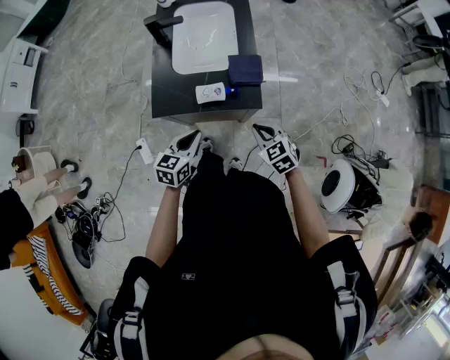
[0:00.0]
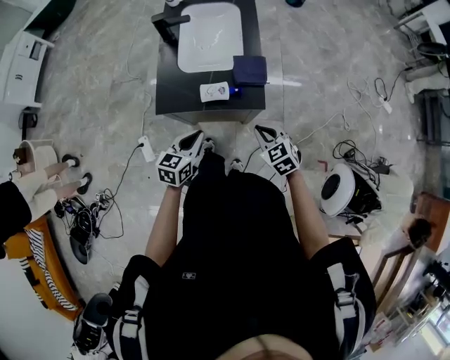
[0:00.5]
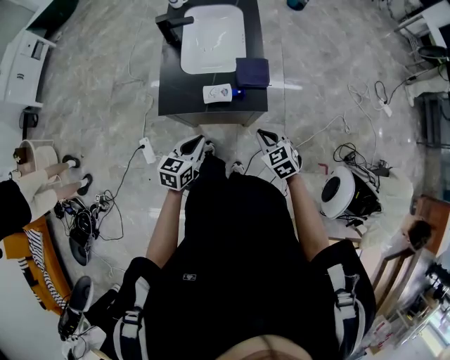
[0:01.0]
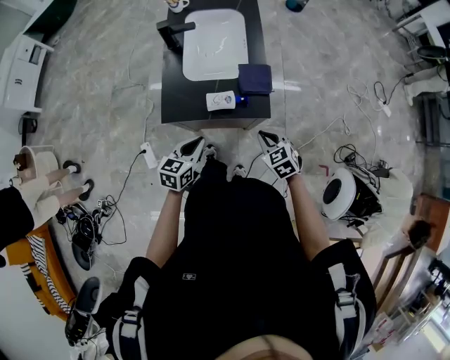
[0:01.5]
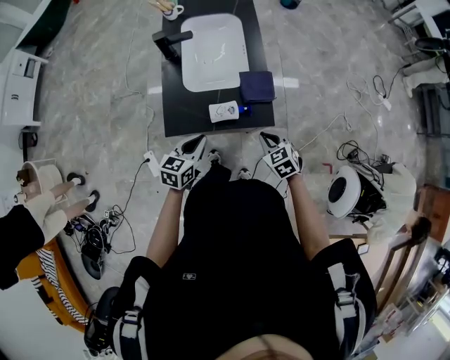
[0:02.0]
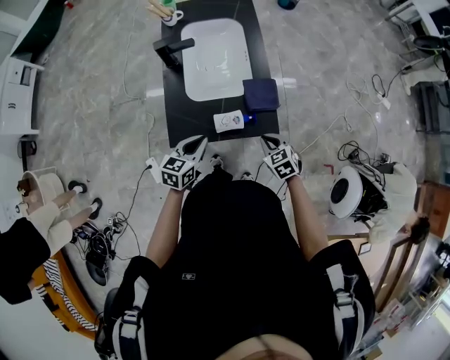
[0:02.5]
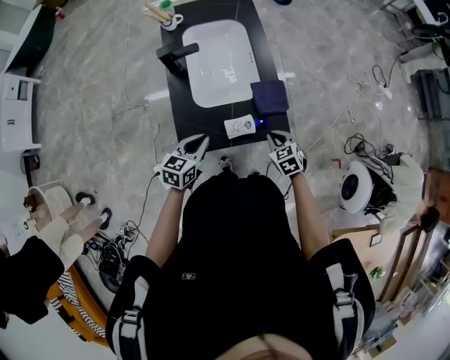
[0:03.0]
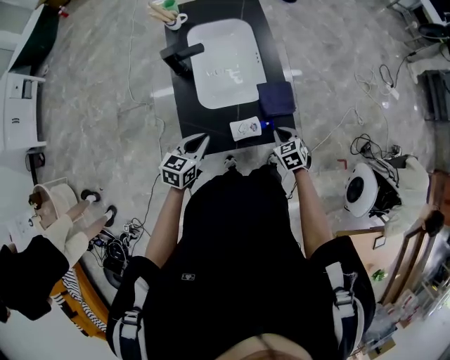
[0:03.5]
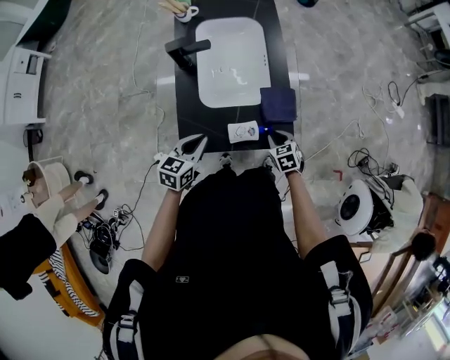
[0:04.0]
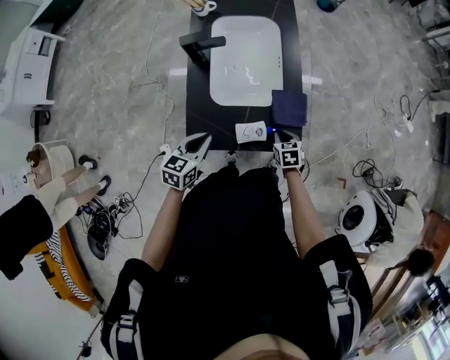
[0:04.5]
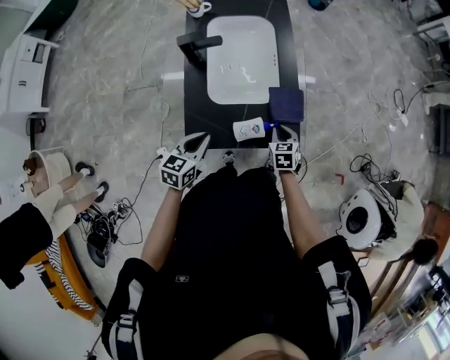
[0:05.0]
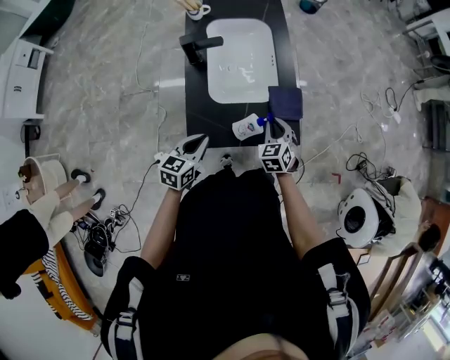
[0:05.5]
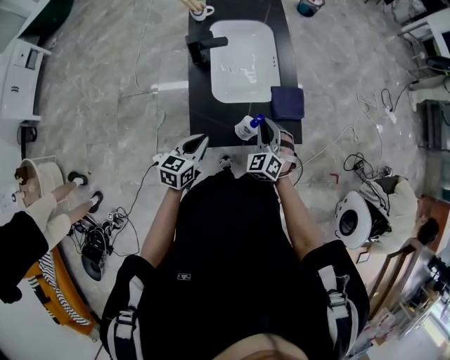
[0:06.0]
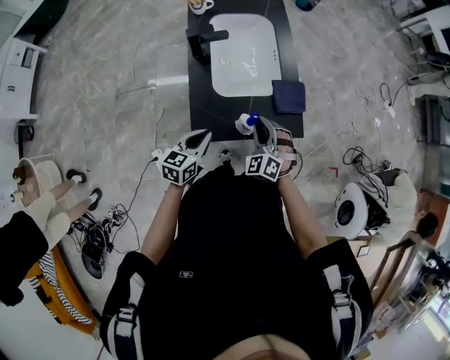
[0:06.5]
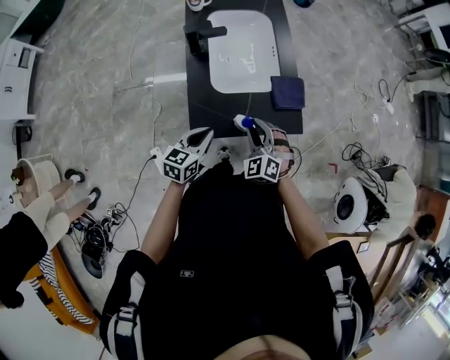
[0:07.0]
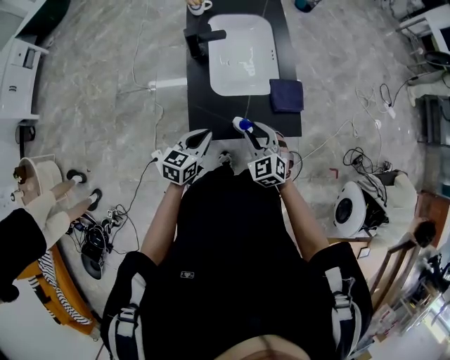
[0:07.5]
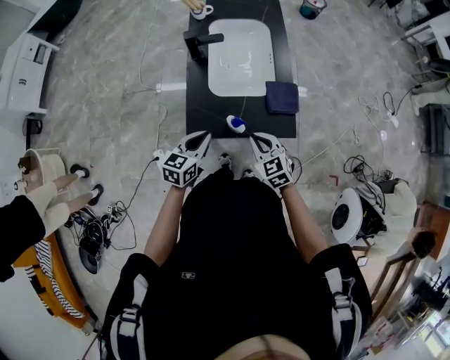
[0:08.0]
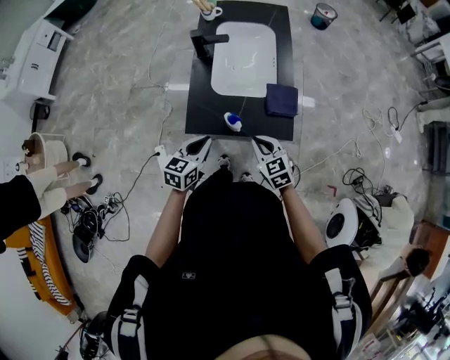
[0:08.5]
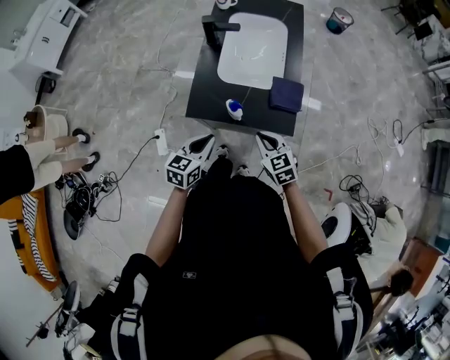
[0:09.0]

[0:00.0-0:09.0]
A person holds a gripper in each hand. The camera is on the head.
0:00.0 to 0:02.0: The left gripper heads forward, covering roughly 5 cm, while the right gripper changes place by about 5 cm.
0:02.0 to 0:04.5: The left gripper travels to the left and forward by about 10 cm; the right gripper goes about 15 cm forward and downward, and turns by roughly 20 degrees.
0:04.5 to 0:07.0: The right gripper is displaced upward, to the left and backward by some 20 cm, and rolls counterclockwise, seen from behind, by approximately 50 degrees.
0:07.0 to 0:09.0: The left gripper changes place by about 10 cm, while the right gripper ends up approximately 10 cm from where it was, turns by approximately 40 degrees, and closes.

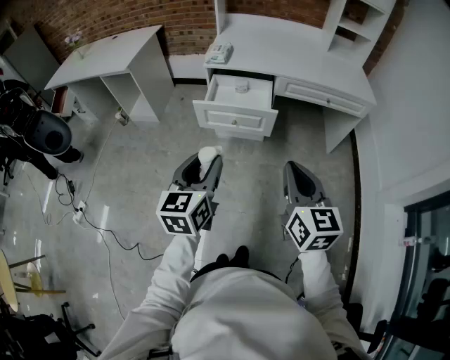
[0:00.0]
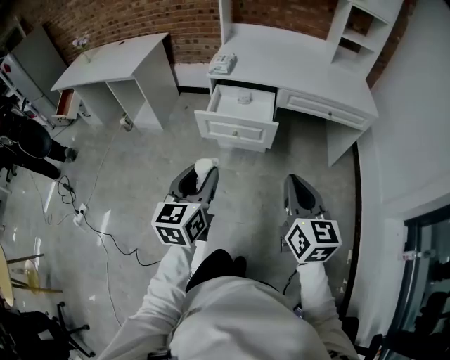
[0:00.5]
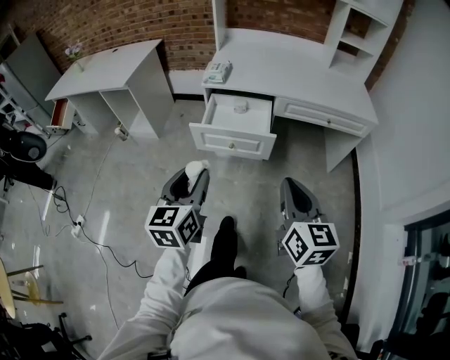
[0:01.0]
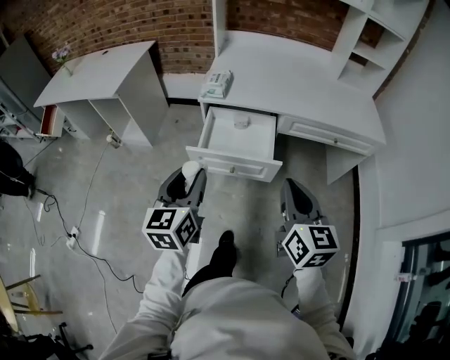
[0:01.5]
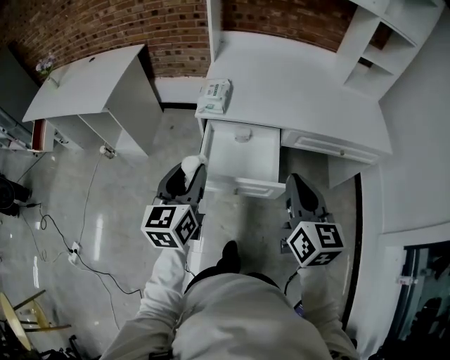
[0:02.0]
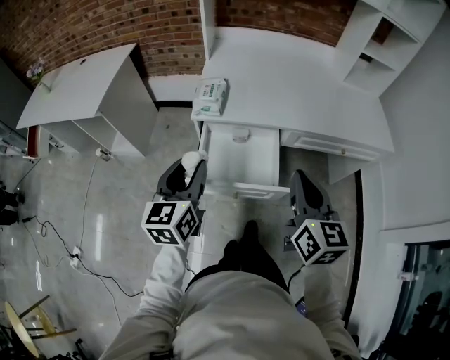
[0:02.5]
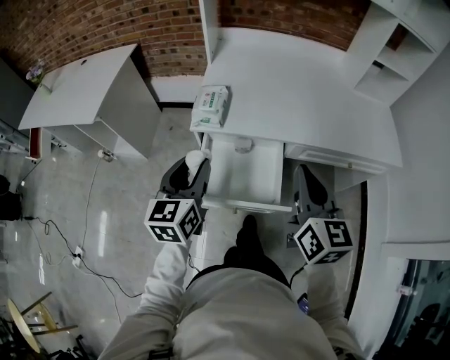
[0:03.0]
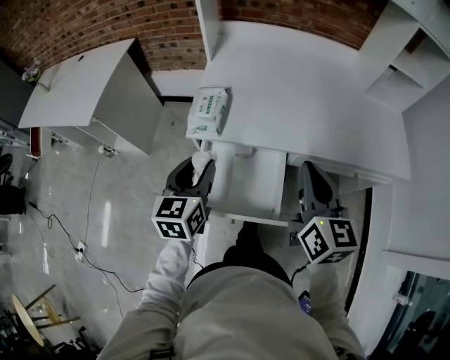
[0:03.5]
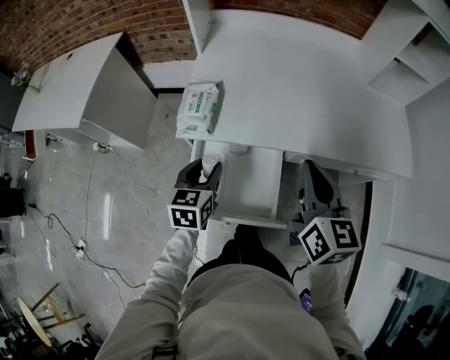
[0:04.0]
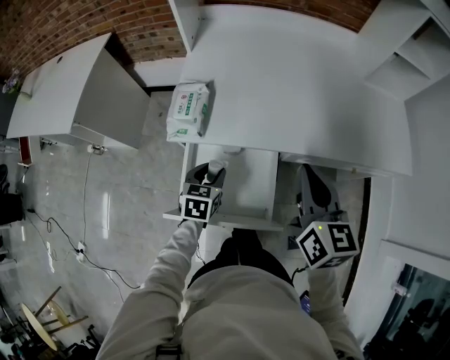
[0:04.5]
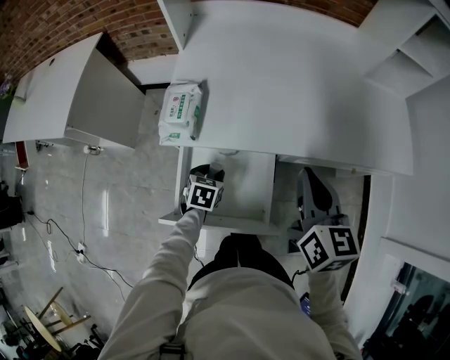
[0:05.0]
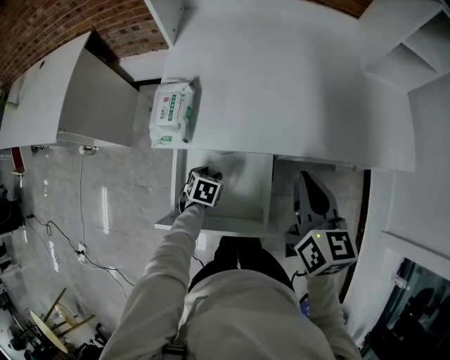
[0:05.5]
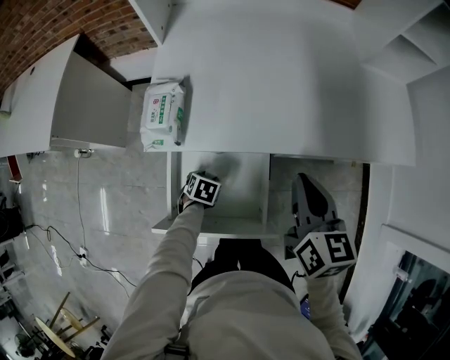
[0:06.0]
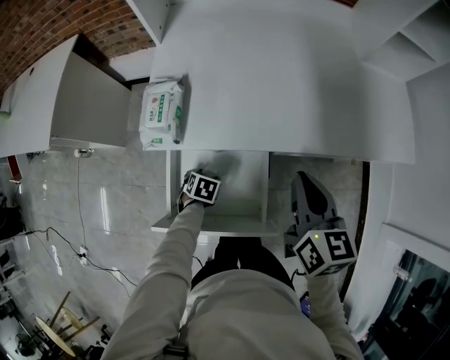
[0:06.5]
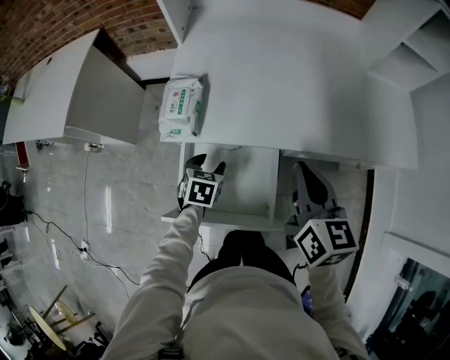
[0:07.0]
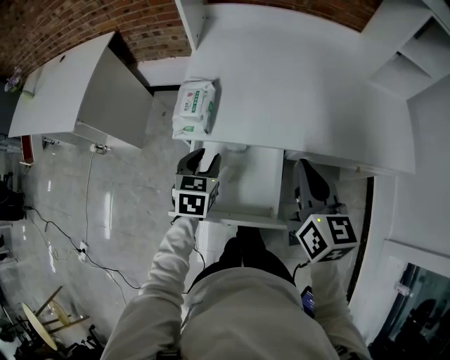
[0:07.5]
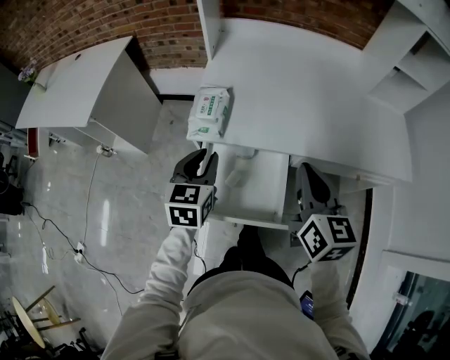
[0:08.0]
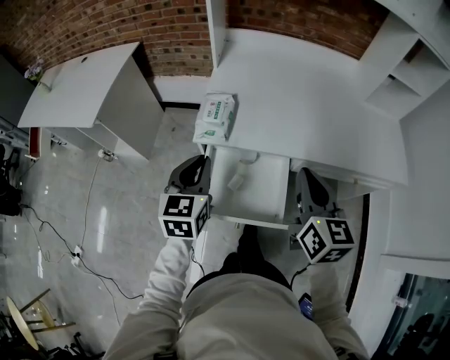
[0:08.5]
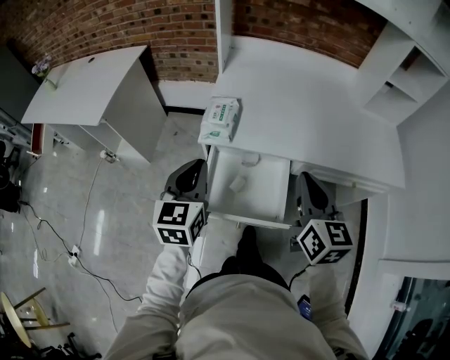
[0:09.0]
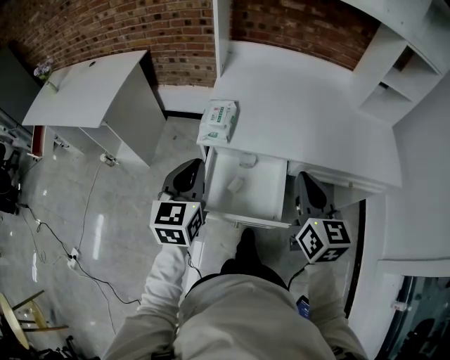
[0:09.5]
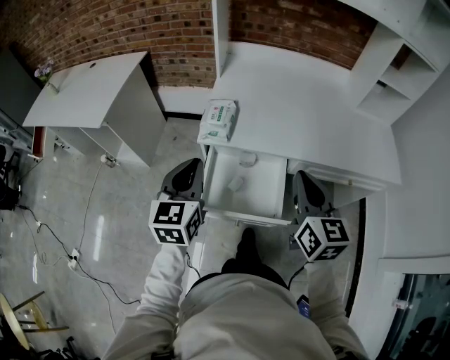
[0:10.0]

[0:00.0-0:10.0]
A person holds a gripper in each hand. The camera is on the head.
0:00.0 to 0:02.0: The grippers both shift forward by some 30 cm.
0:02.0 to 0:04.0: The right gripper goes approximately 20 cm forward; the left gripper heads forward and downward, covering roughly 25 cm, and swivels roughly 20 degrees.
0:04.0 to 0:06.0: The left gripper goes roughly 25 cm downward, and angles its fingers downward, by some 40 degrees; the right gripper goes about 5 cm downward.
0:06.0 to 0:08.0: The left gripper travels upward by about 35 cm, and points its fingers some 40 degrees further upward. Meanwhile the right gripper is displaced upward and to the left by roughly 10 cm.
0:08.0 to 0:10.0: The left gripper goes roughly 15 cm upward, backward and to the left. Meanwhile the right gripper moves backward, about 5 cm.

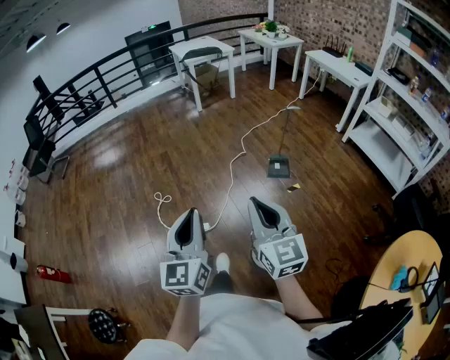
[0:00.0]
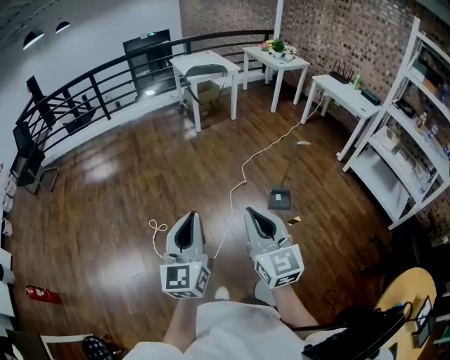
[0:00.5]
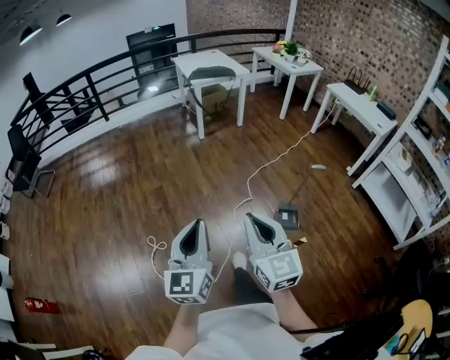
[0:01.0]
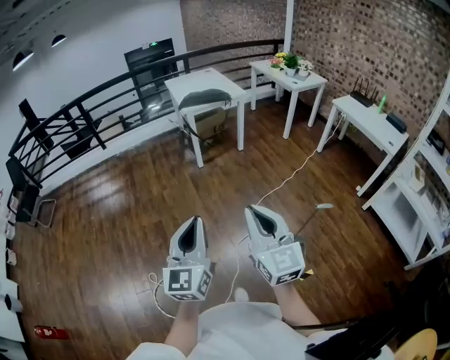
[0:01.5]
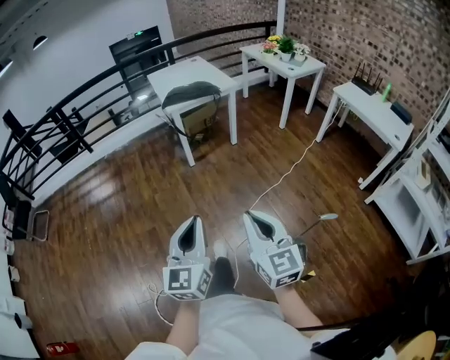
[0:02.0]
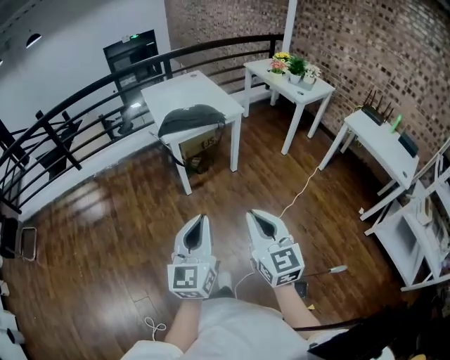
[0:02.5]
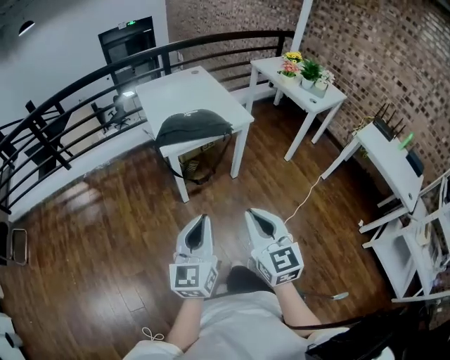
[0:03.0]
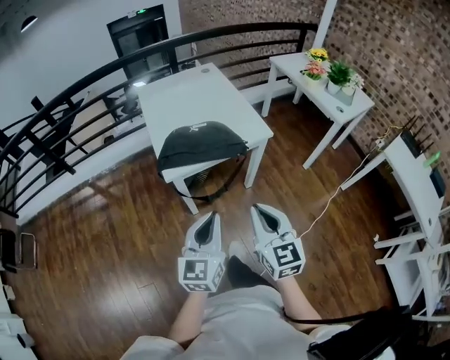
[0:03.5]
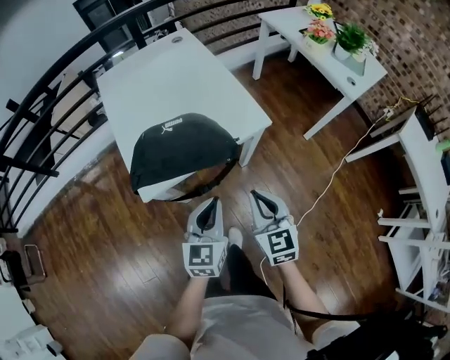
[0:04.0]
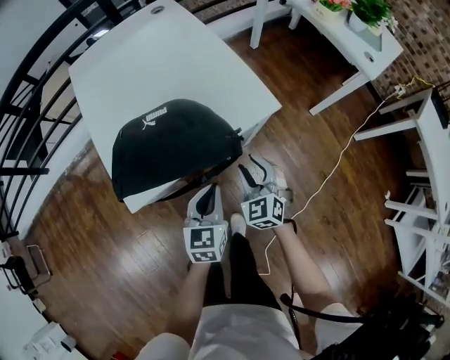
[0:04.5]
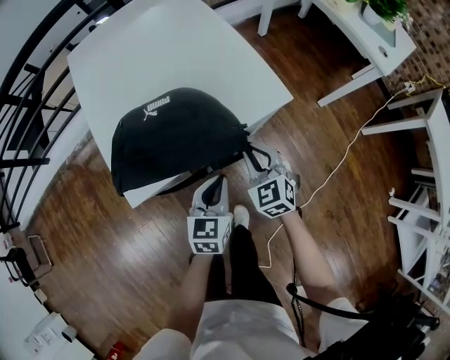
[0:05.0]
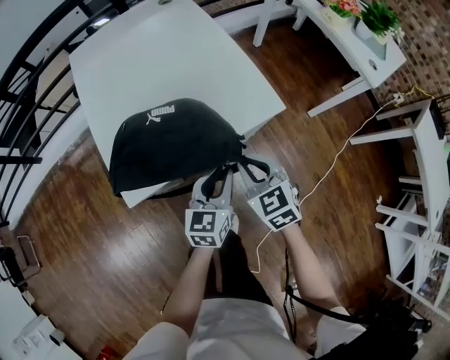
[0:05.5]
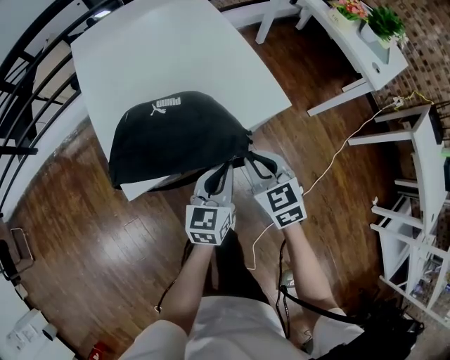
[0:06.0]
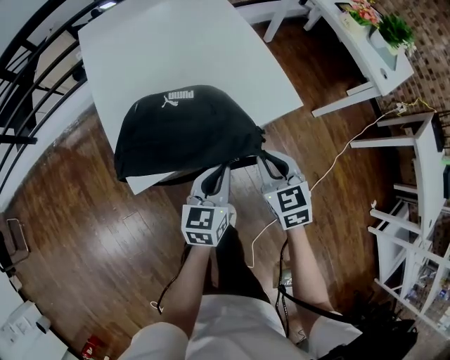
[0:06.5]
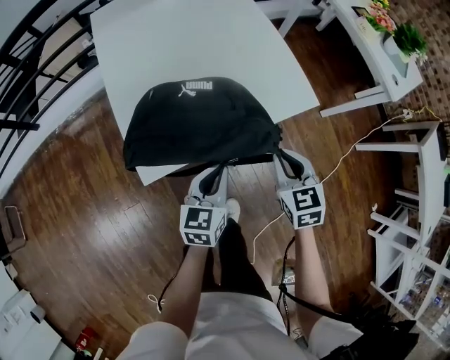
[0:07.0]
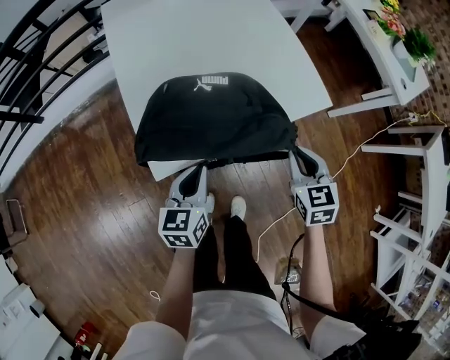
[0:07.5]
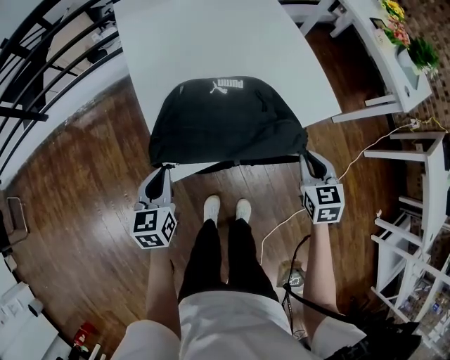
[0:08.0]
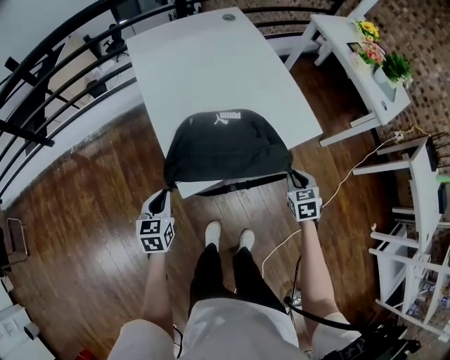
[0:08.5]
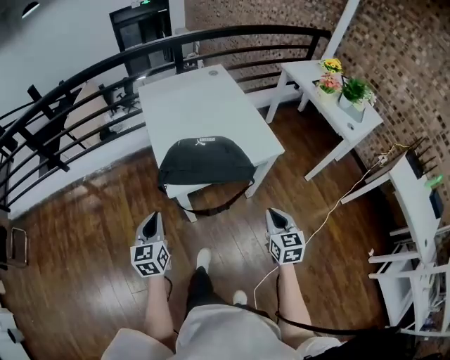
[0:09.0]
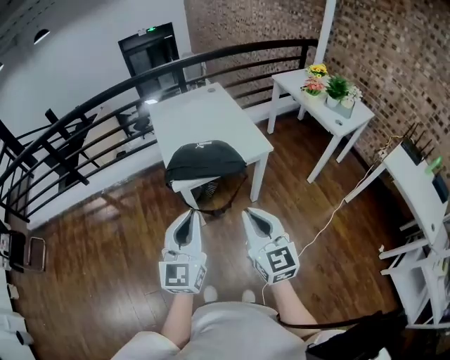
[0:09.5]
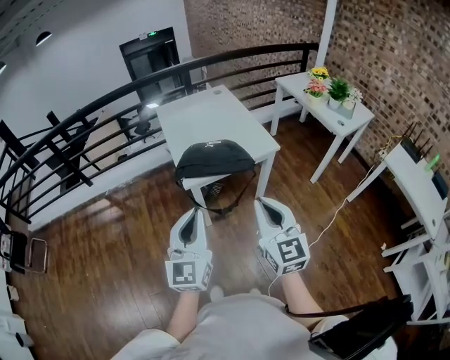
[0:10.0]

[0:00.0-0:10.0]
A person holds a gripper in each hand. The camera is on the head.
0:00.0 to 0:02.0: The two grippers travel together, forward, about 80 cm.
0:02.0 to 0:04.0: The pair of grippers is taken forward, some 90 cm. The left gripper turns by some 20 degrees.
0:04.0 to 0:06.0: The right gripper shifts roughly 15 cm forward and downward, and opens, then closes once more. The left gripper is displaced downward and forward by about 15 cm.
0:06.0 to 0:08.0: The left gripper heads to the left, covering about 30 cm, and changes its angle by some 20 degrees.
0:08.0 to 0:10.0: Both grippers travel together upward and backward, roughly 50 cm. The right gripper points its fingers about 40 degrees further upward, while the left gripper angles its fingers upward, by roughly 40 degrees.
